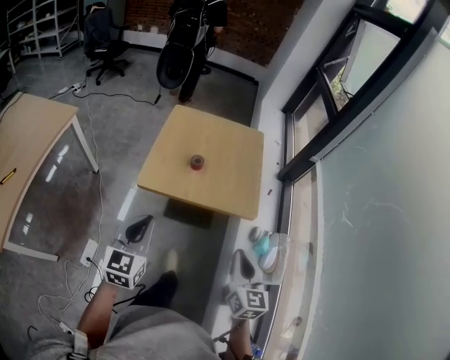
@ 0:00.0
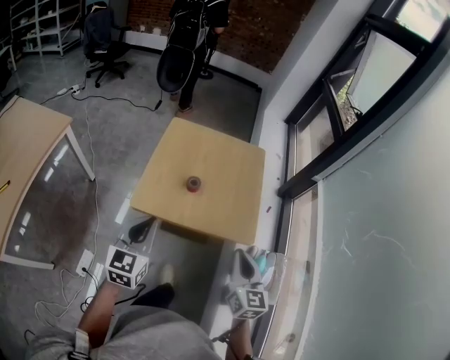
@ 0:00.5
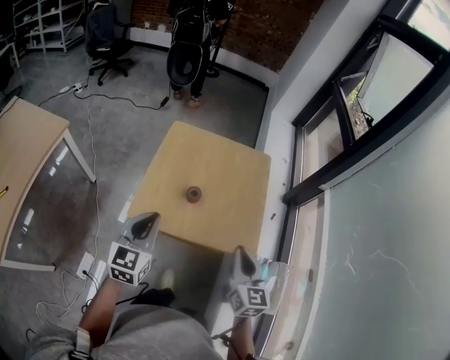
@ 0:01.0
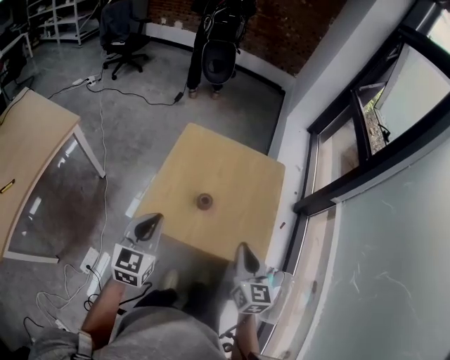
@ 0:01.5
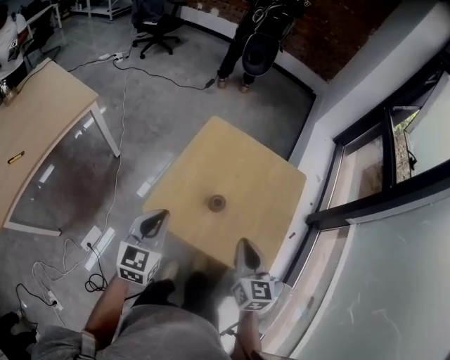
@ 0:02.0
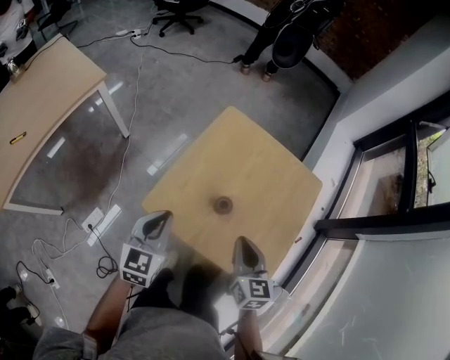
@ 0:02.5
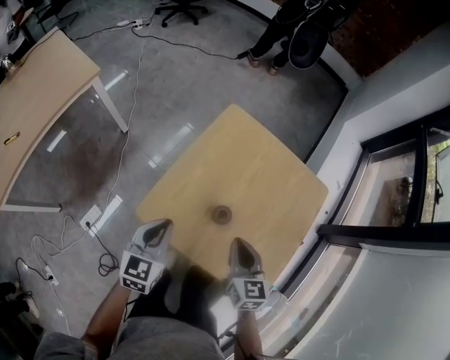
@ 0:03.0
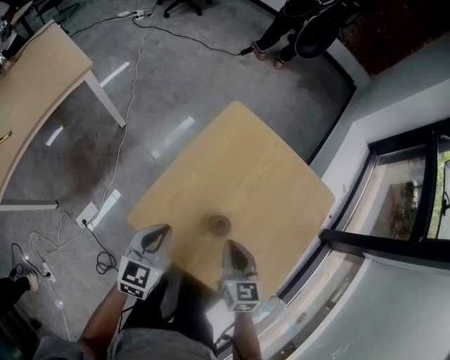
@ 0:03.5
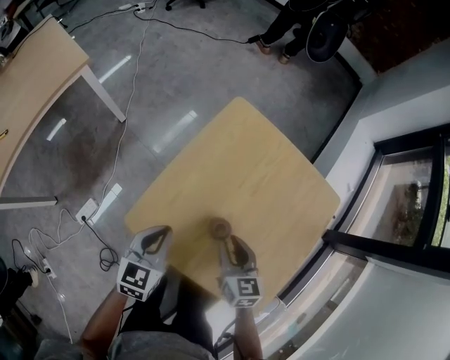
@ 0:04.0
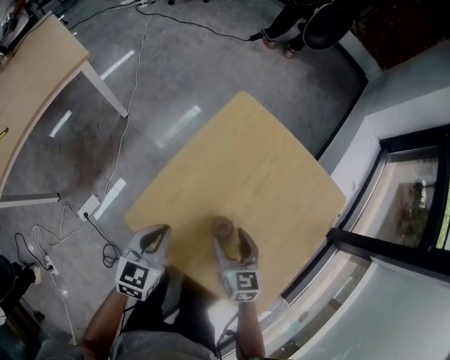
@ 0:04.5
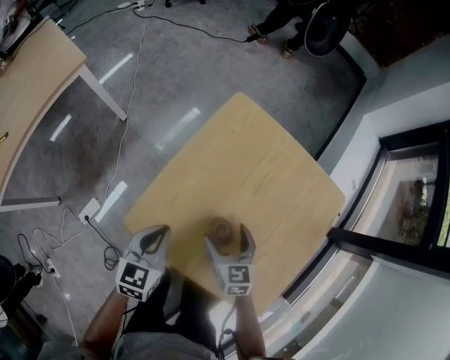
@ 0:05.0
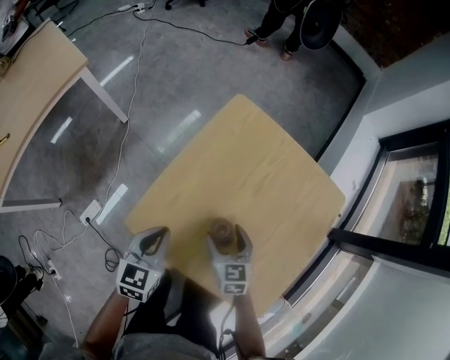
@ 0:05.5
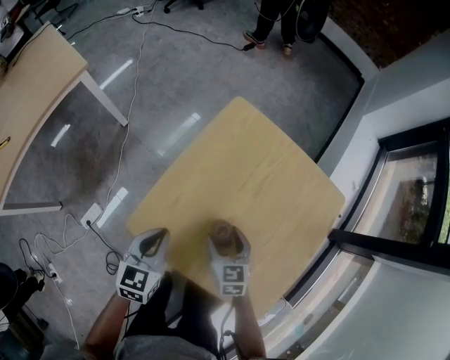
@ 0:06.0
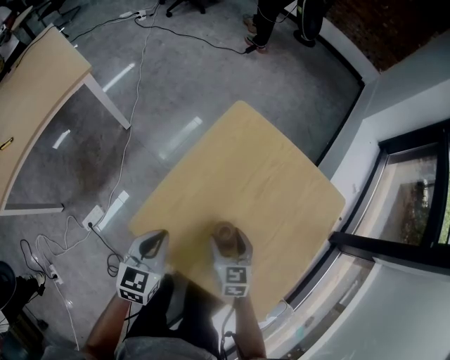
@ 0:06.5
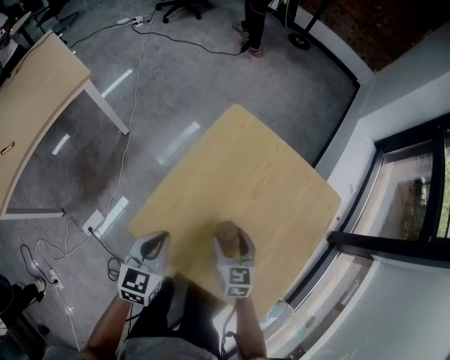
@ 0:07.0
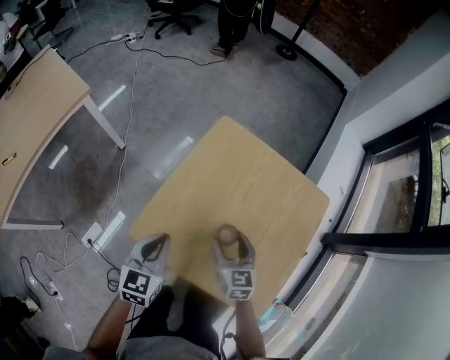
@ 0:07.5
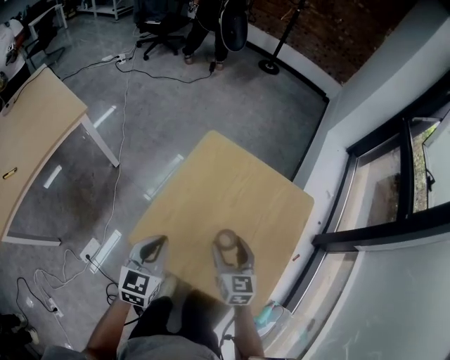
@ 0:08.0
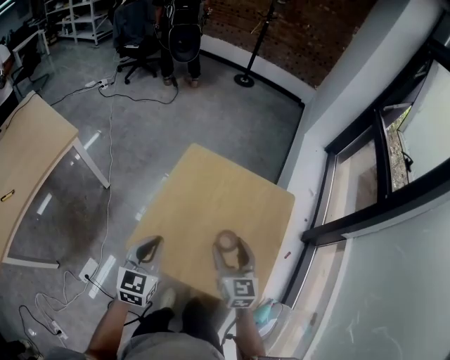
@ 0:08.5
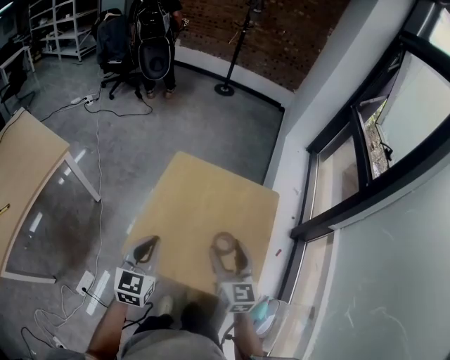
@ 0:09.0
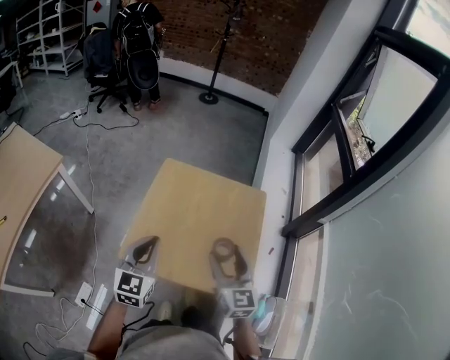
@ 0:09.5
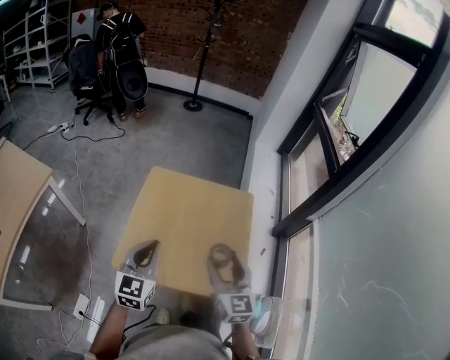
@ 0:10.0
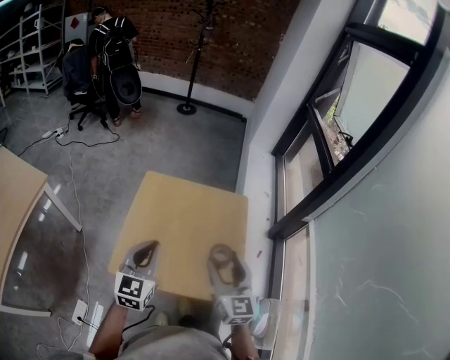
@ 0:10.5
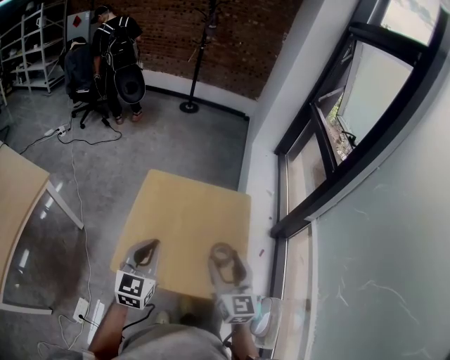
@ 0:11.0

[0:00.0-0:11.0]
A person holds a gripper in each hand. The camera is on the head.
0:00.0 to 0:02.0: The grippers both shift forward by about 25 cm. The right gripper swivels some 20 degrees.
0:02.0 to 0:03.5: The grippers both shift downward and forward by approximately 15 cm.
0:03.5 to 0:05.5: The right gripper goes approximately 10 cm downward, and opens its fingers.
0:05.5 to 0:07.5: Both grippers move upward, approximately 5 cm.
0:07.5 to 0:09.0: The right gripper is displaced upward by about 20 cm, and rotates roughly 20 degrees; the left gripper moves upward, approximately 15 cm.
0:09.0 to 0:11.0: The right gripper travels upward and to the right by approximately 10 cm, while the left gripper moves to the right, roughly 5 cm.

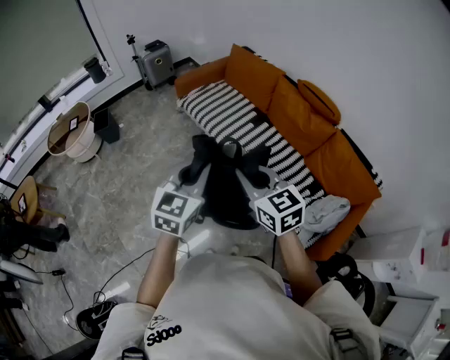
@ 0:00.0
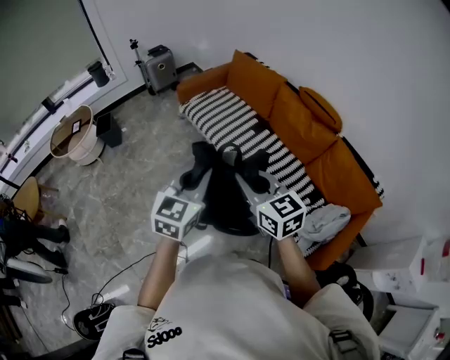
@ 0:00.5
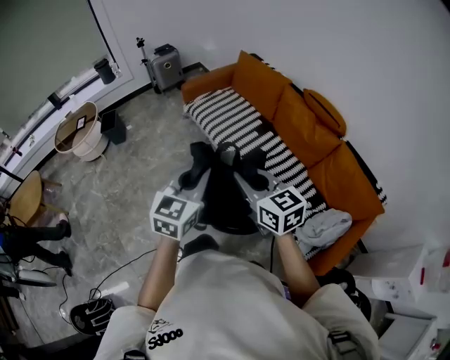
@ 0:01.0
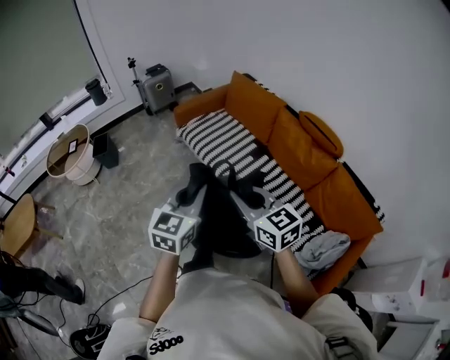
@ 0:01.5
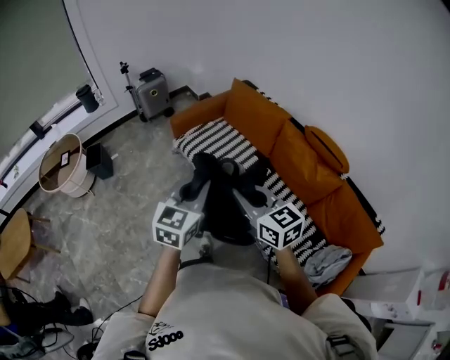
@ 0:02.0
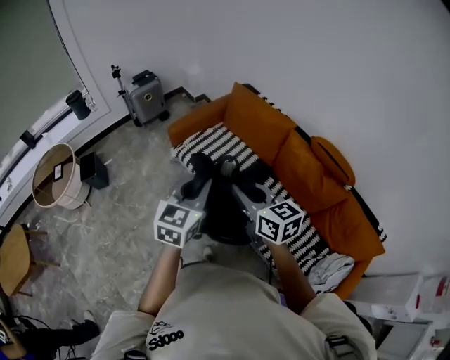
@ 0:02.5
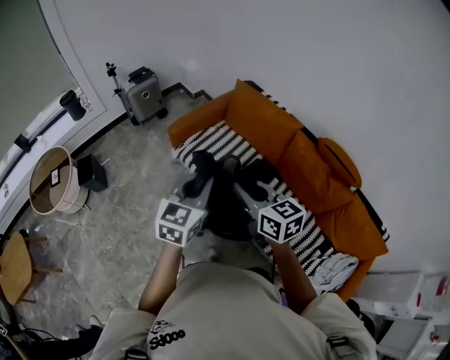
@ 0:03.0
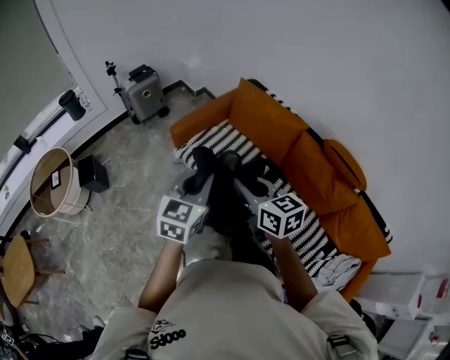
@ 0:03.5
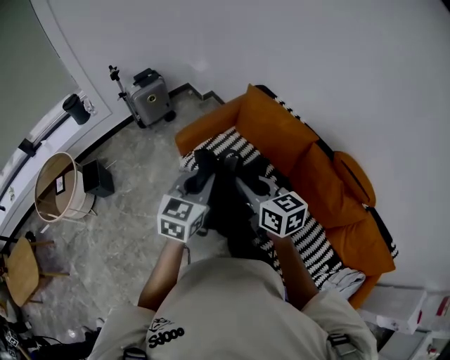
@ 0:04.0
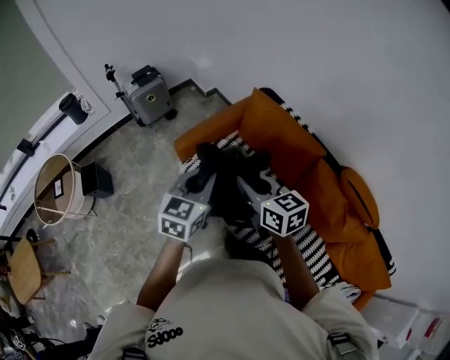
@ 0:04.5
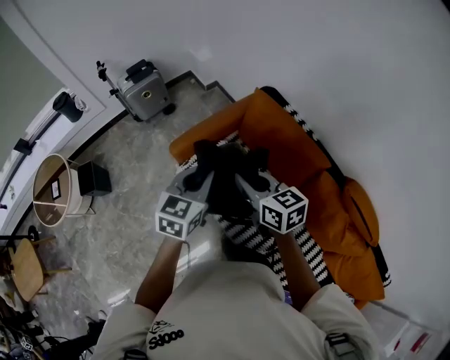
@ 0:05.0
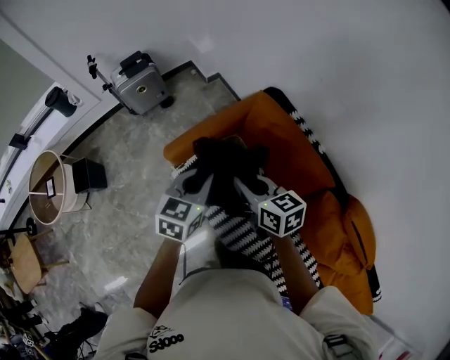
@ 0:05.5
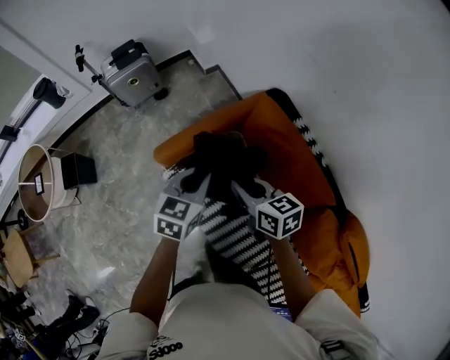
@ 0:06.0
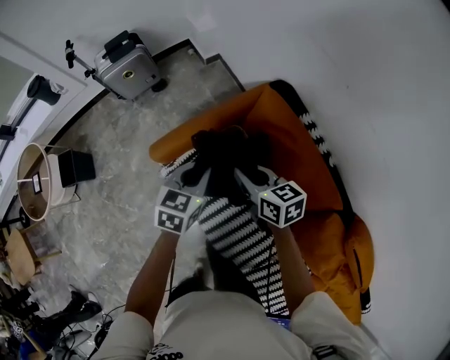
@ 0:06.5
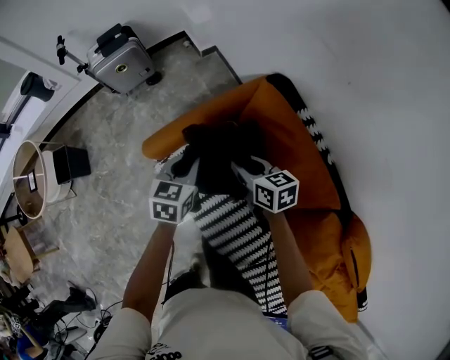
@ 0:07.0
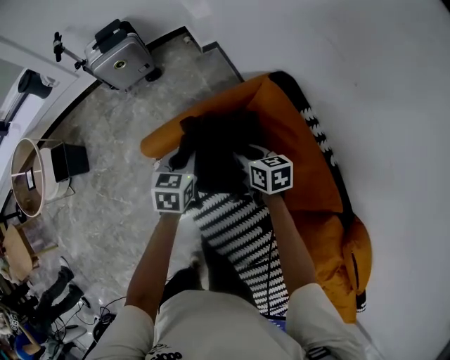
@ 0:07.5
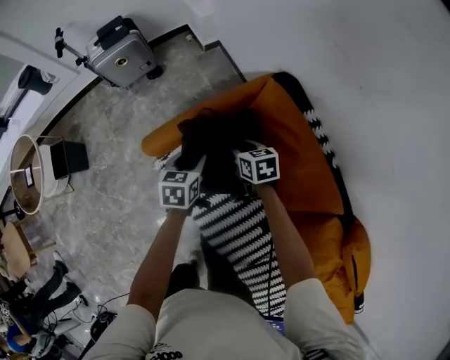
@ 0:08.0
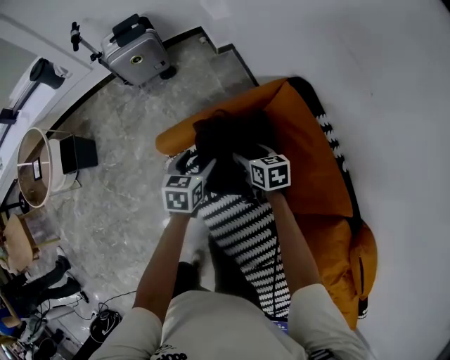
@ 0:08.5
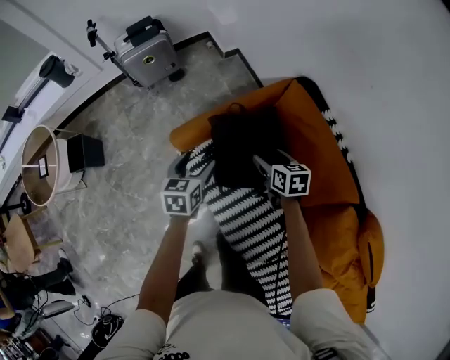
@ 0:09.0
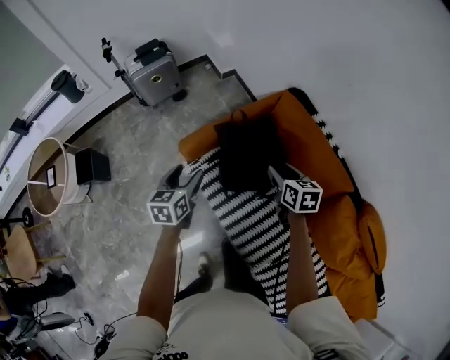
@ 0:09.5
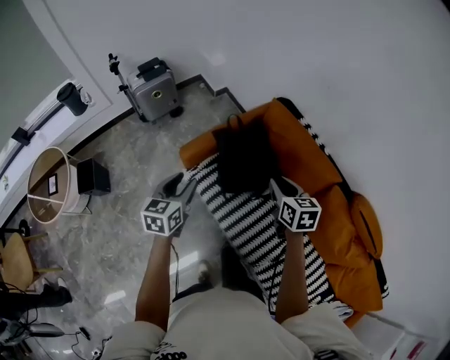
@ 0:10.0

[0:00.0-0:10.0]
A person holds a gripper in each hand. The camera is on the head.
0:00.0 to 0:02.0: The two grippers go about 25 cm forward.
0:02.0 to 0:04.0: Both grippers move forward, about 30 cm.
0:04.0 to 0:06.0: Both grippers move forward and downward, approximately 40 cm. The right gripper swivels approximately 20 degrees.
0:06.0 to 0:08.0: The right gripper heads downward and forward, covering roughly 25 cm; the left gripper travels downward by about 20 cm, rotates roughly 20 degrees, and opens its fingers.
0:08.0 to 0:10.0: The left gripper goes some 35 cm upward, backward and to the left, rotates approximately 20 degrees, and opens, then closes again, while the right gripper goes approximately 35 cm backward and upward, turns by approximately 30 degrees, and opens, then closes again.

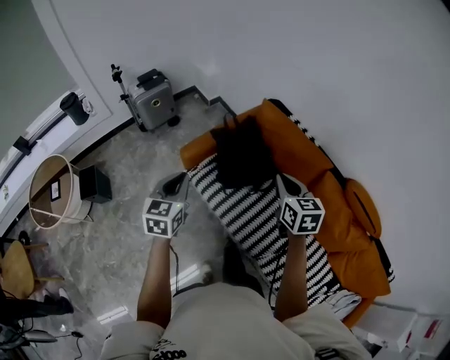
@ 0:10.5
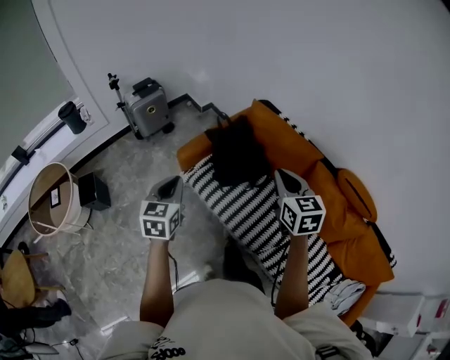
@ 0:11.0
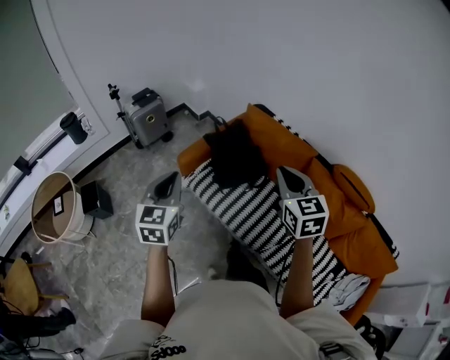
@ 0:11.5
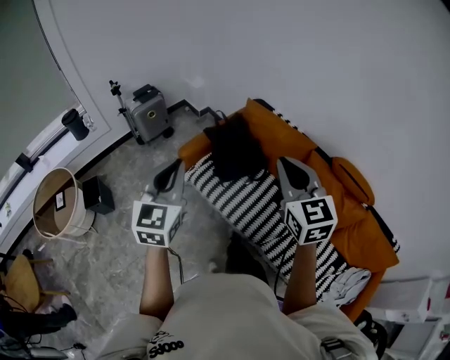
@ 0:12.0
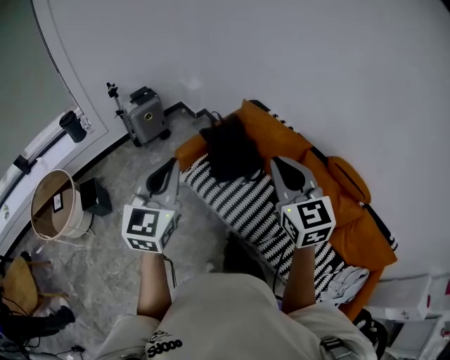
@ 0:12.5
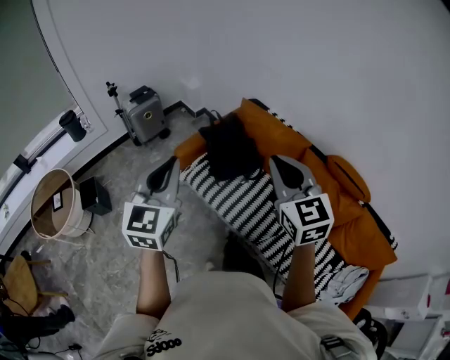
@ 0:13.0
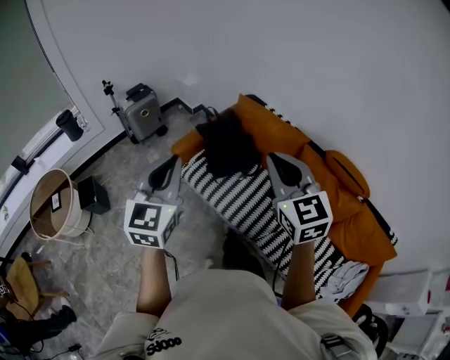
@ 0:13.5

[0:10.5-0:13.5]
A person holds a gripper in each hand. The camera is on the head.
0:10.5 to 0:12.0: Both grippers move upward and backward, some 25 cm. The left gripper changes its angle by approximately 20 degrees. The right gripper swivels some 30 degrees.
0:12.0 to 0:13.5: The grippers move only a little.

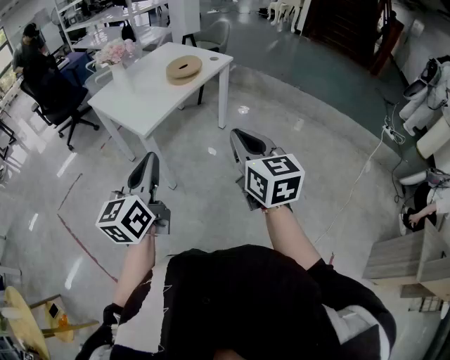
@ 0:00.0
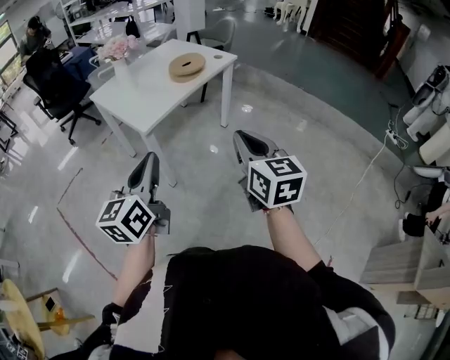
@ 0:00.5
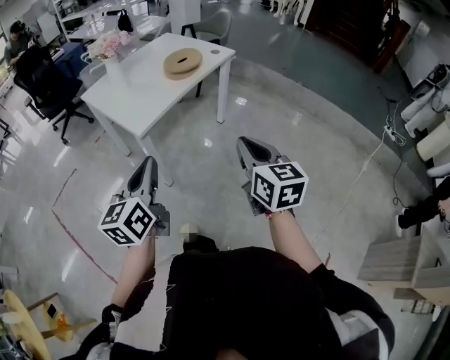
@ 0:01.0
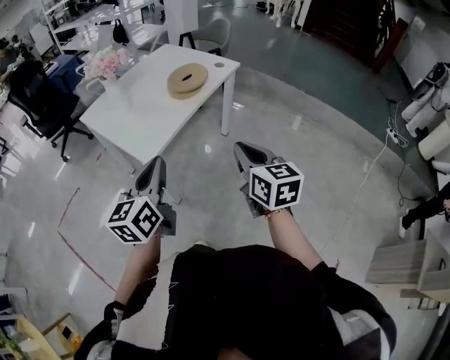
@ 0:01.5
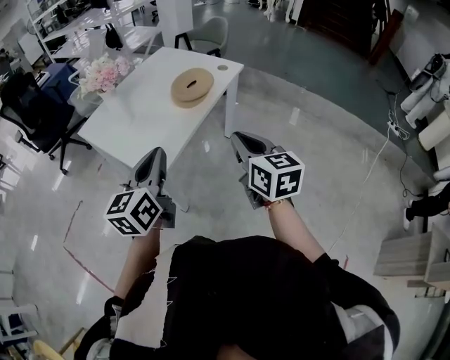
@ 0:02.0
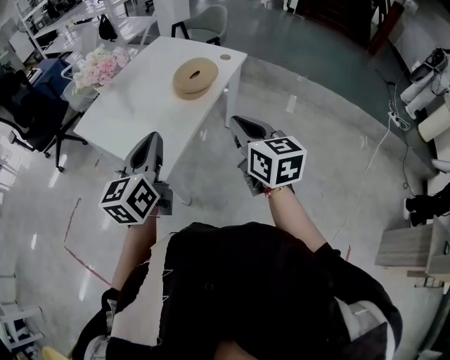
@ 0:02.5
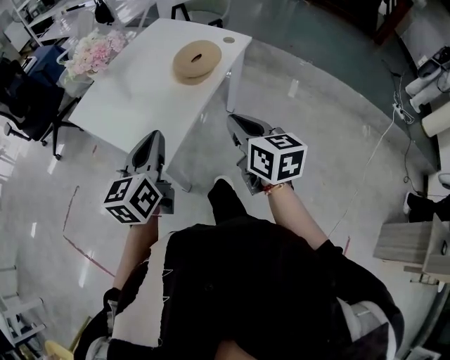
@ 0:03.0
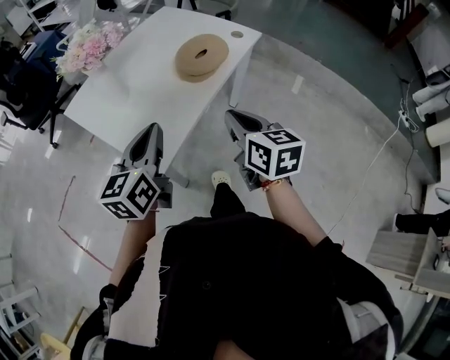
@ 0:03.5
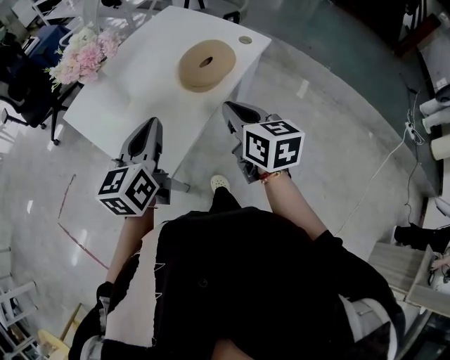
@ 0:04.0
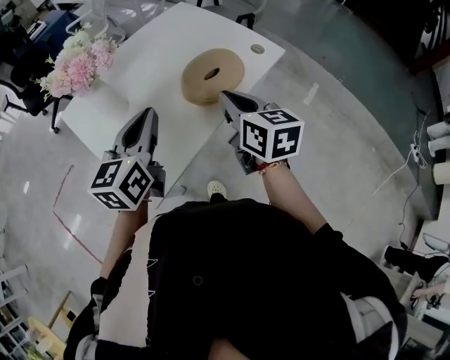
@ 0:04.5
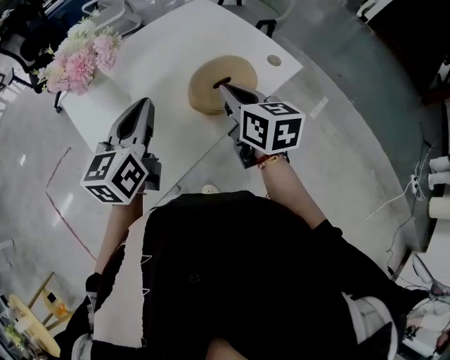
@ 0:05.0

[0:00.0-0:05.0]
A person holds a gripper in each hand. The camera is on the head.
0:00.0 to 0:02.5: Both grippers travel together forward, about 30 cm.
0:02.5 to 0:05.0: The two grippers go some 25 cm forward. The right gripper changes its angle by about 20 degrees.
